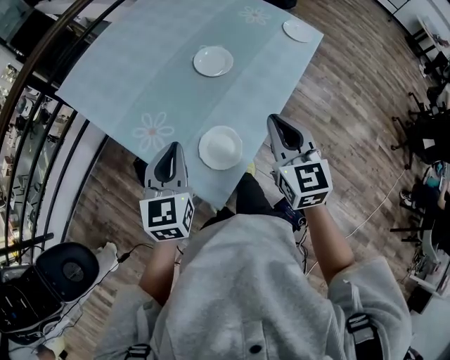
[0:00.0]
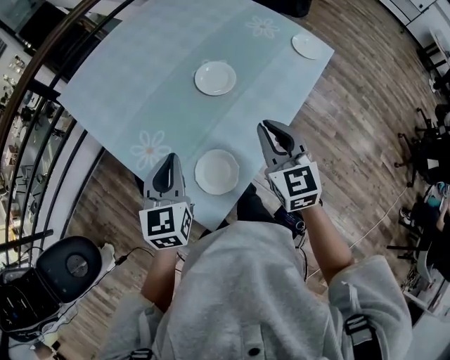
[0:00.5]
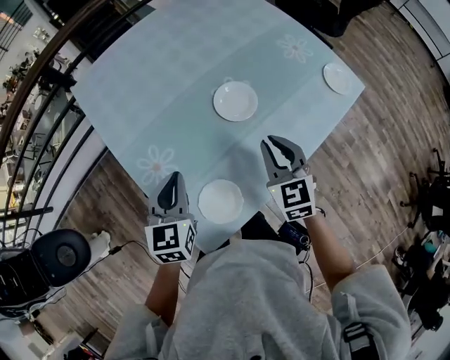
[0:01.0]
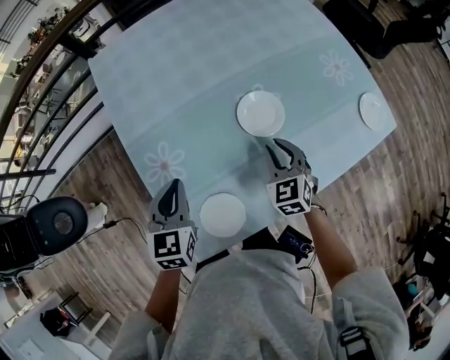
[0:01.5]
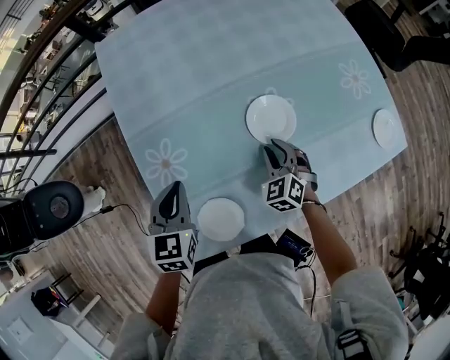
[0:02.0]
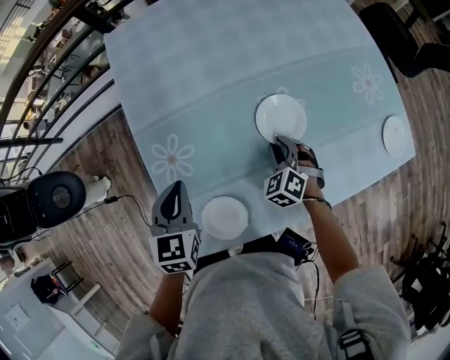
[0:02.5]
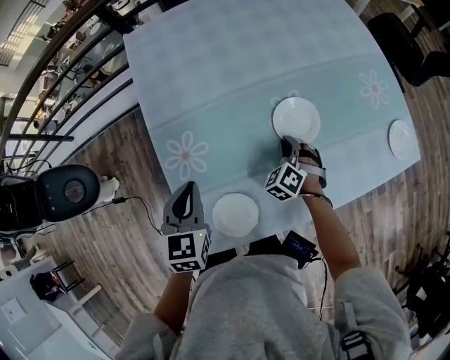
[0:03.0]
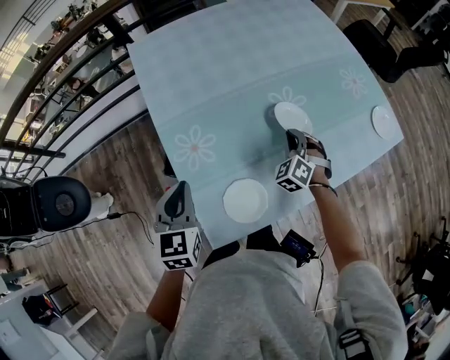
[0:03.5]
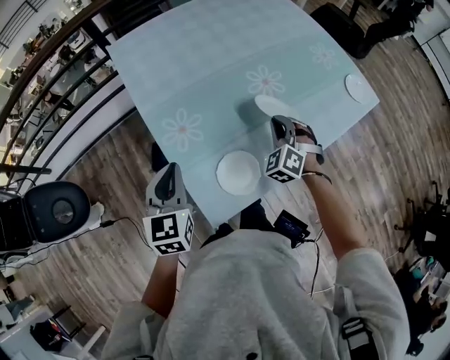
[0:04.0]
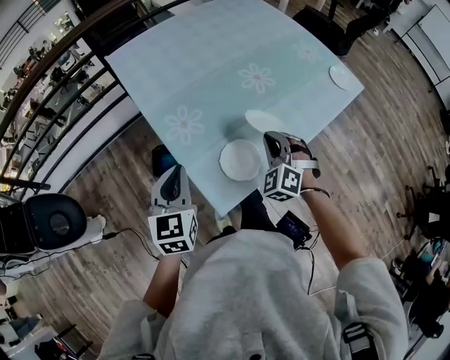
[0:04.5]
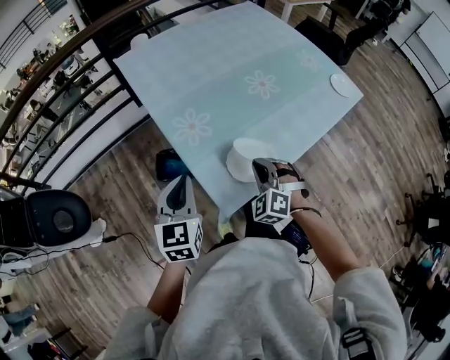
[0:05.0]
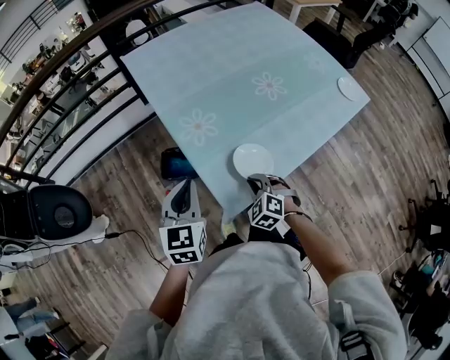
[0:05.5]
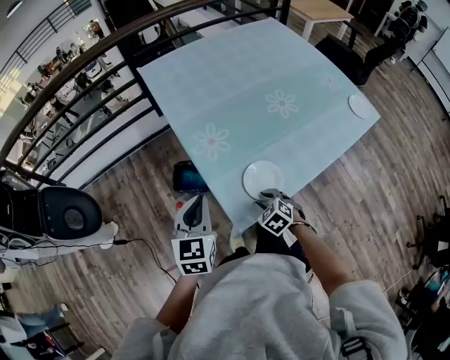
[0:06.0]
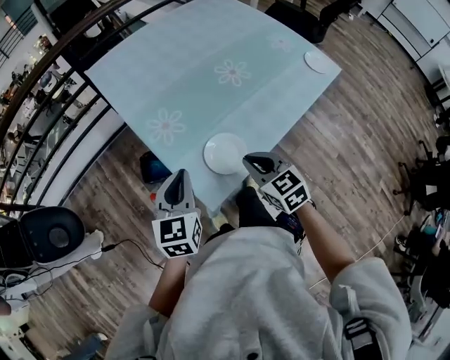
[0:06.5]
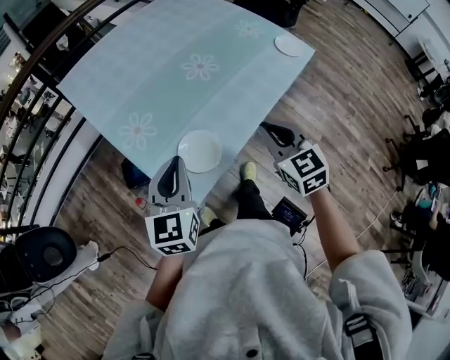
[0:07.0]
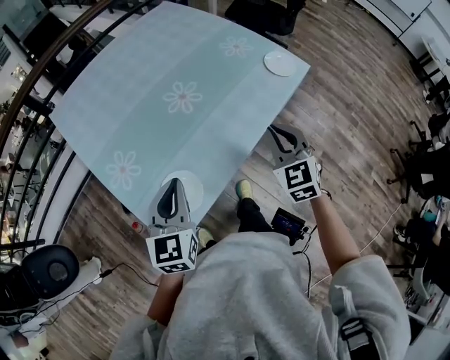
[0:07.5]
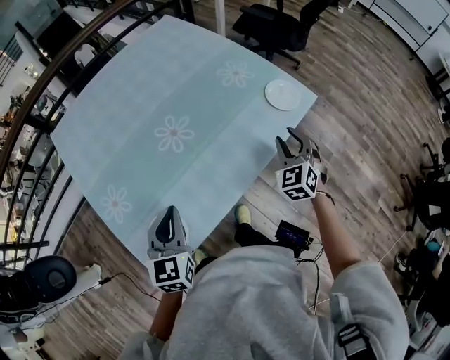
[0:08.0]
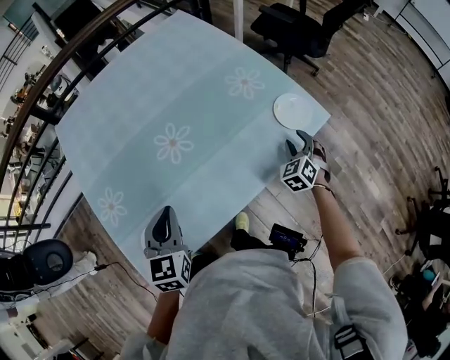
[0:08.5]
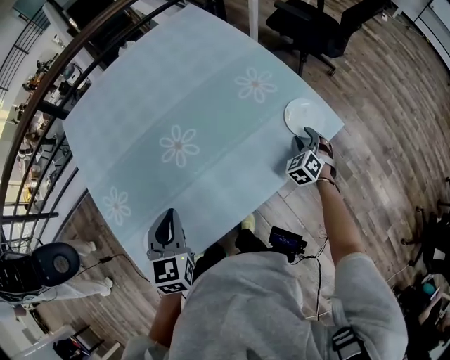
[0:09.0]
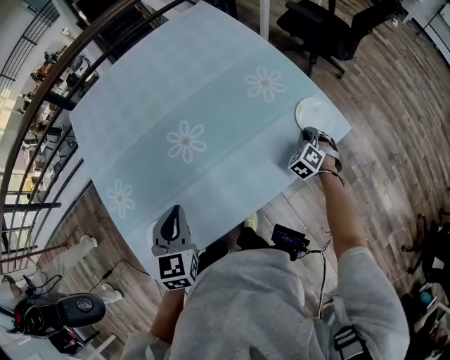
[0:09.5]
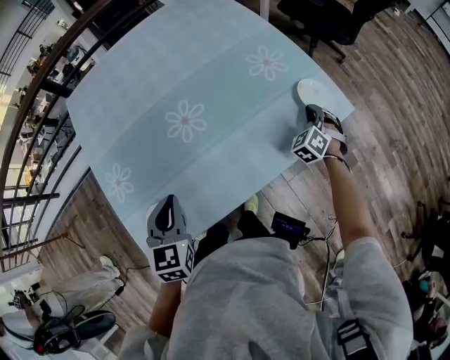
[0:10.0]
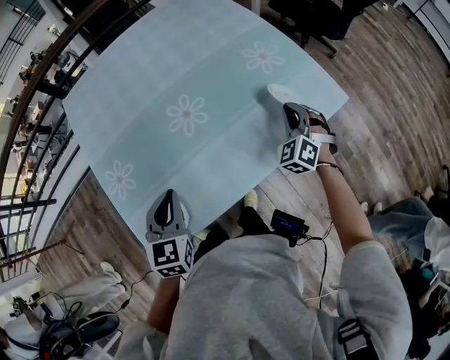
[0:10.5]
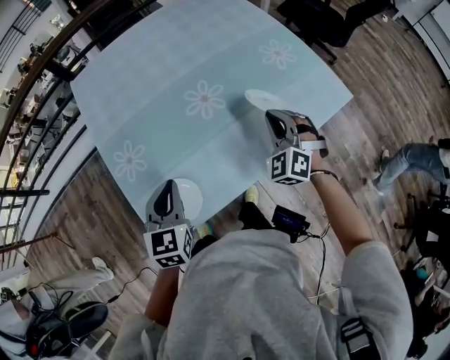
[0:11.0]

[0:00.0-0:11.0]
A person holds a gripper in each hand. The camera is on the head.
0:00.0 to 0:02.0: The right gripper ends up roughly 35 cm from where it was, and swivels some 60 degrees; the left gripper ends up approximately 15 cm from where it was, and swivels some 40 degrees.
0:02.0 to 0:03.5: The left gripper shifts about 10 cm to the left and backward. The right gripper swivels roughly 20 degrees.
0:03.5 to 0:05.5: The right gripper moves backward and to the left, about 30 cm. The left gripper moves backward, about 10 cm.
0:05.5 to 0:07.5: The right gripper changes place by roughly 40 cm, changes its angle by about 40 degrees, and opens and closes again; the left gripper ends up roughly 25 cm from where it was.
0:07.5 to 0:09.0: The left gripper heads forward and to the right, covering about 15 cm, and swivels some 20 degrees, while the right gripper is displaced forward, downward and to the right by roughly 40 cm, turns by roughly 30 degrees, and opens its fingers.
0:09.0 to 0:11.0: The left gripper moves to the left and backward, some 15 cm; the right gripper goes about 30 cm to the left, upward and backward, turns by about 30 degrees, and closes up.

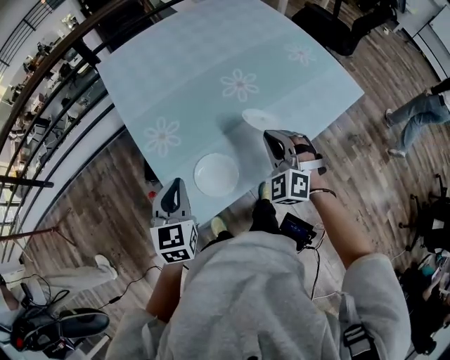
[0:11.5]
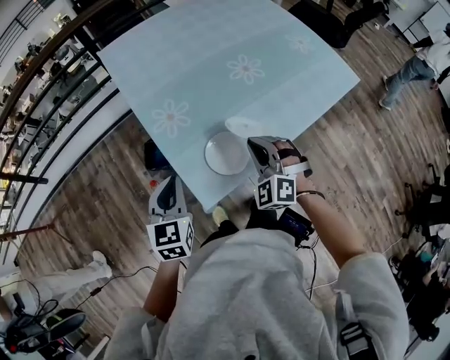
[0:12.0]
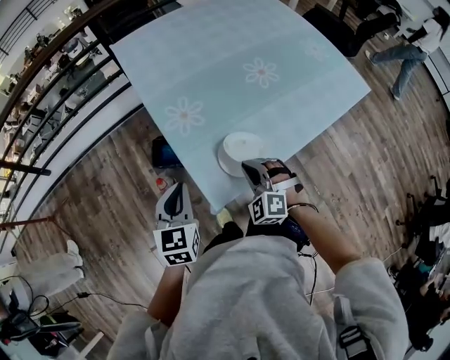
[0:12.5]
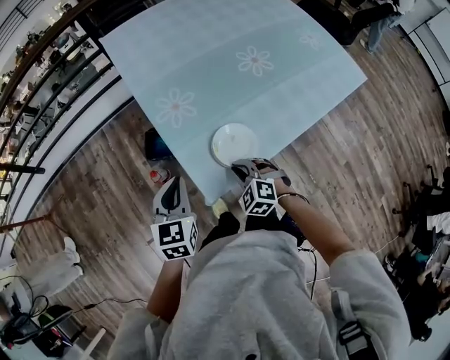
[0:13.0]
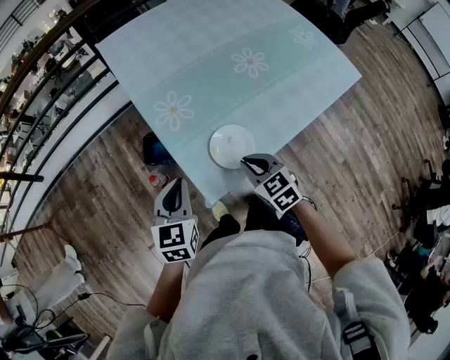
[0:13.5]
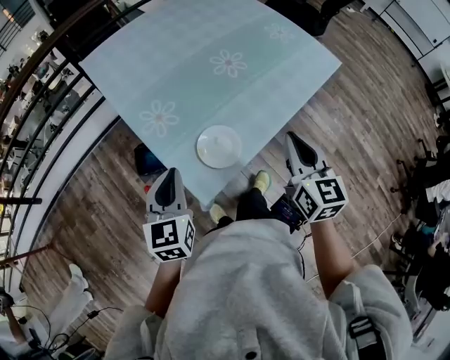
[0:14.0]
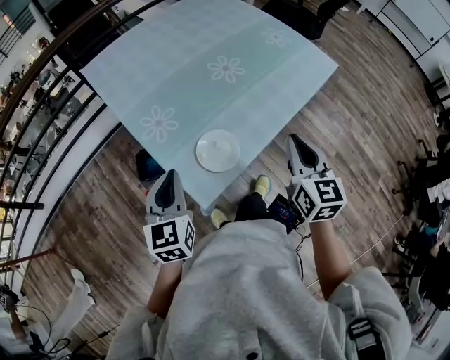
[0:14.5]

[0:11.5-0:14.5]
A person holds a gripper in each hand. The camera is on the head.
0:11.5 to 0:13.0: The left gripper shifts some 10 cm to the left and backward. The right gripper moves to the left, downward and backward, approximately 25 cm, and rotates roughly 30 degrees.
0:13.0 to 0:14.5: The right gripper heads upward and to the right, covering approximately 30 cm, and angles its fingers upward, by some 40 degrees. Meanwhile the left gripper goes roughly 5 cm upward.

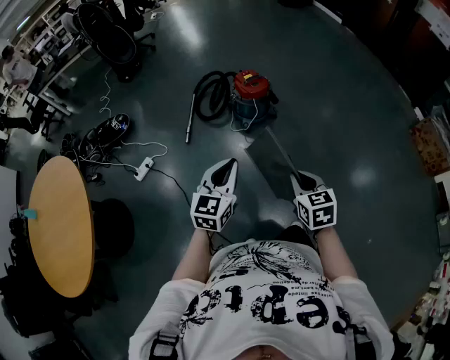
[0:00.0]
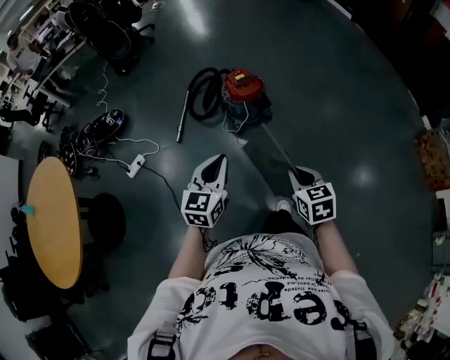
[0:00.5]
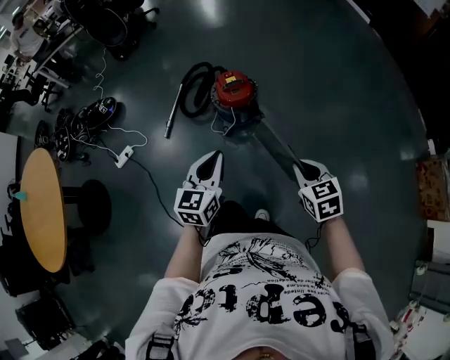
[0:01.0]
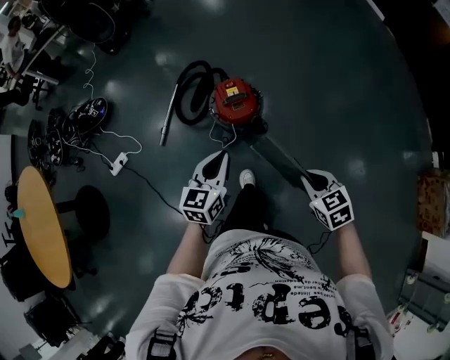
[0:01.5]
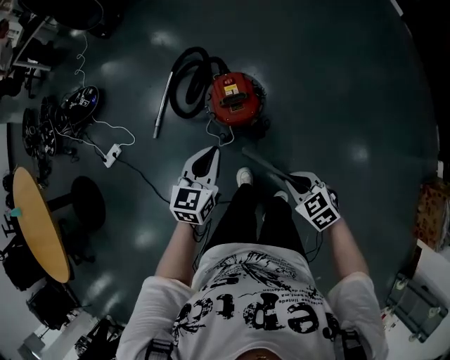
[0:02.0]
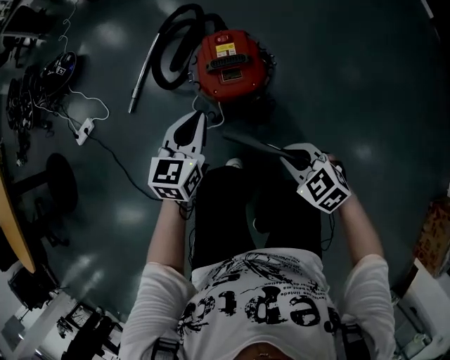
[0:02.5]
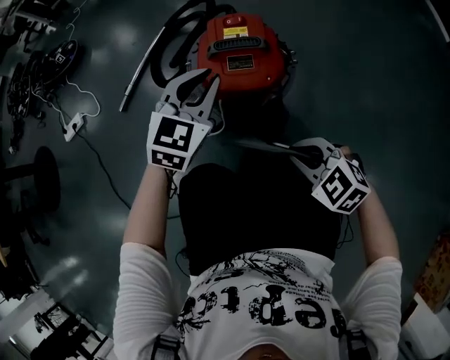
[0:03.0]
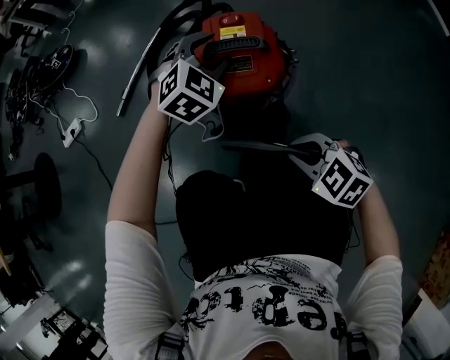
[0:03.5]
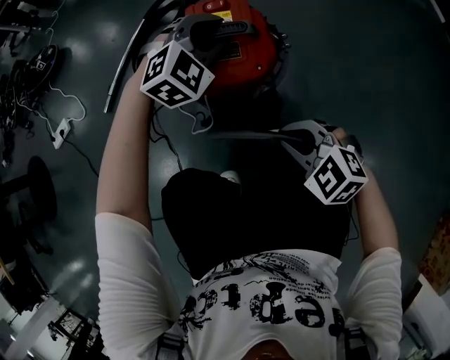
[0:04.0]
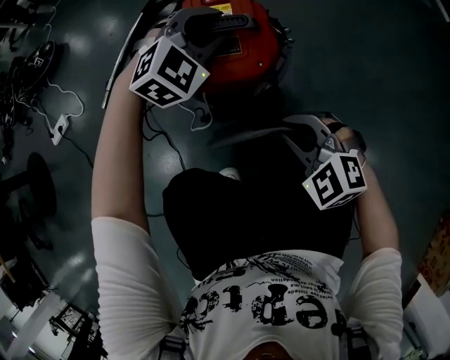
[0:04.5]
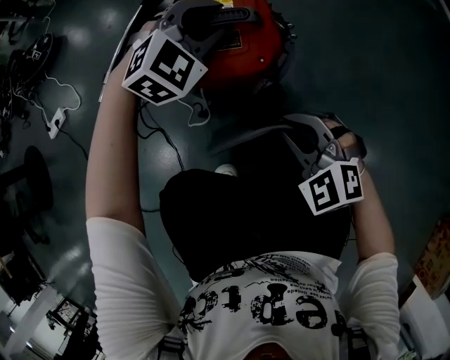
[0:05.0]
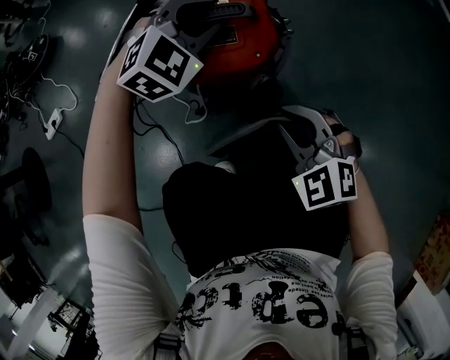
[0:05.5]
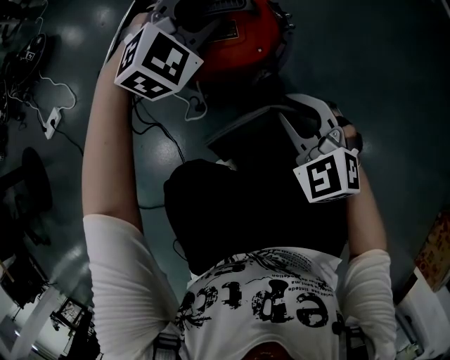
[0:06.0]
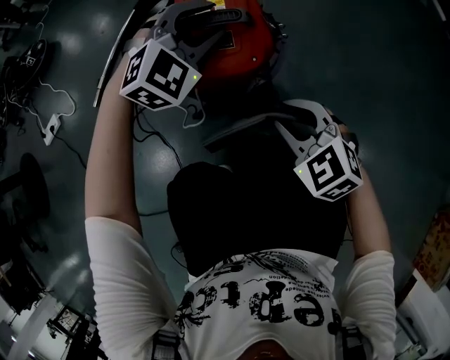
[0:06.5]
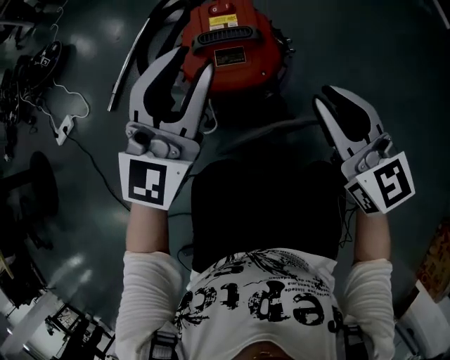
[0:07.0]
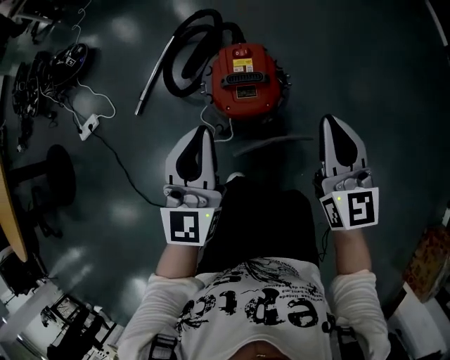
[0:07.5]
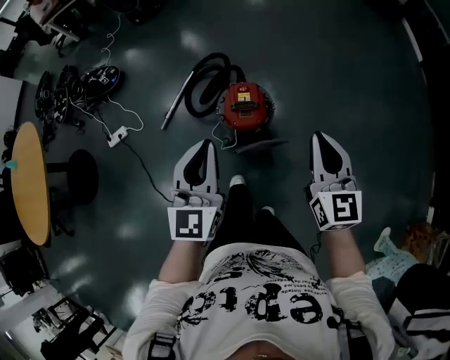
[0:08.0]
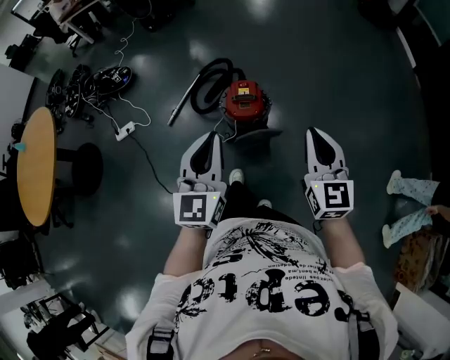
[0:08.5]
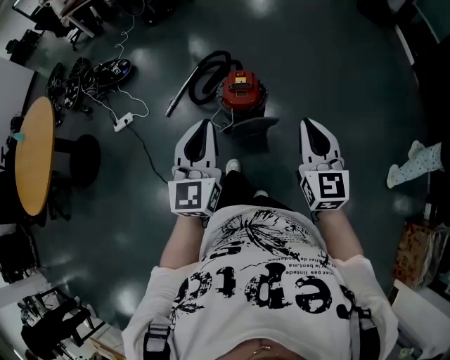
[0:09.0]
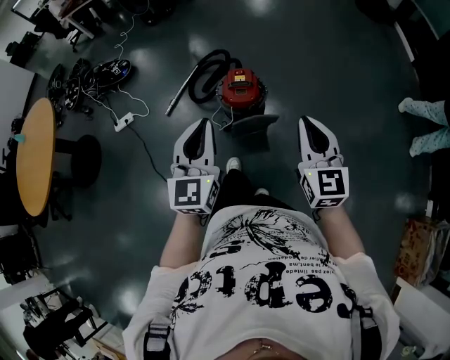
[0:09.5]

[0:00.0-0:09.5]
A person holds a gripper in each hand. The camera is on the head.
0:00.0 to 0:02.0: The two grippers travel together, some 60 cm. The right gripper swivels some 50 degrees. Meanwhile the left gripper rotates approximately 20 degrees.
0:02.0 to 0:04.0: The left gripper travels downward and forward by some 40 cm, rotates around the line of its fingers by roughly 60 degrees, clockwise from behind, and opens, while the right gripper shifts some 35 cm downward, and swivels roughly 40 degrees.
0:04.0 to 0:05.5: The grippers move only a little.
0:05.5 to 0:07.5: The right gripper shifts about 30 cm upward, and angles its fingers upward, by approximately 30 degrees; the left gripper travels upward and backward by roughly 30 cm, points its fingers some 30 degrees further upward, and closes.
0:07.5 to 0:09.5: The two grippers go roughly 40 cm upward and backward.

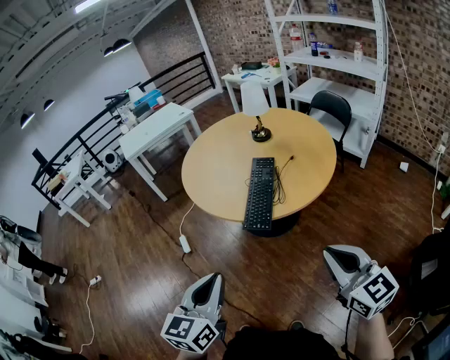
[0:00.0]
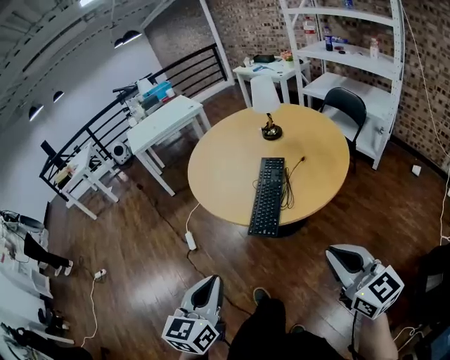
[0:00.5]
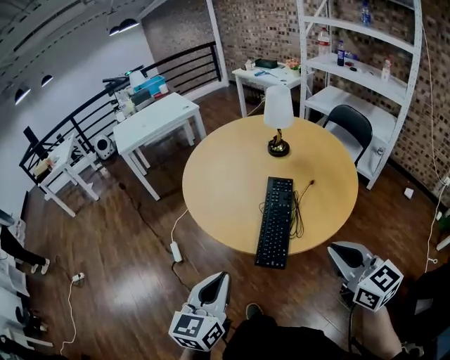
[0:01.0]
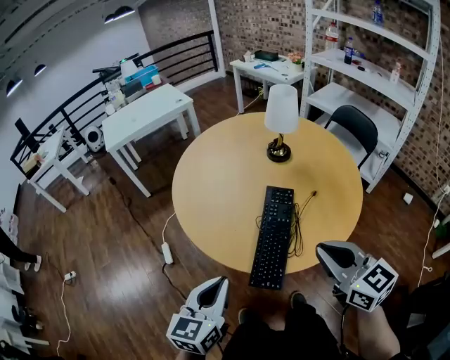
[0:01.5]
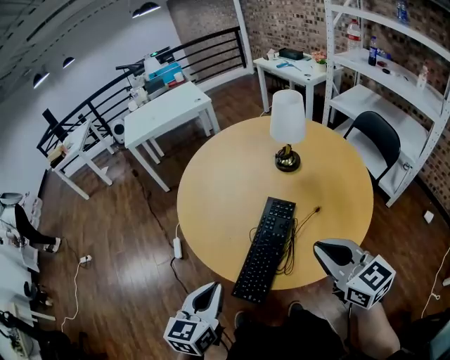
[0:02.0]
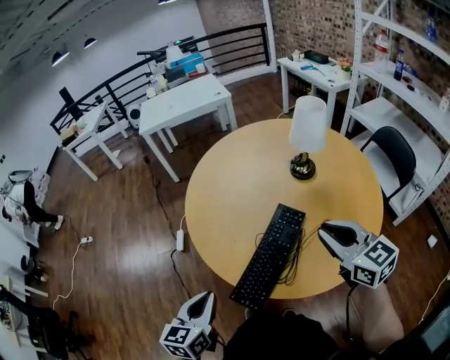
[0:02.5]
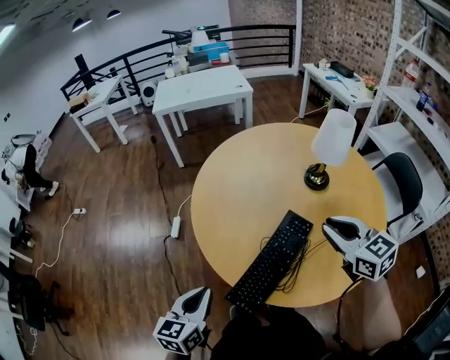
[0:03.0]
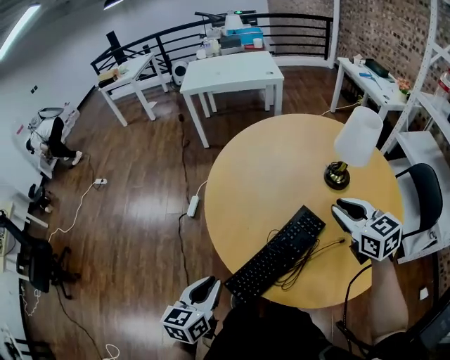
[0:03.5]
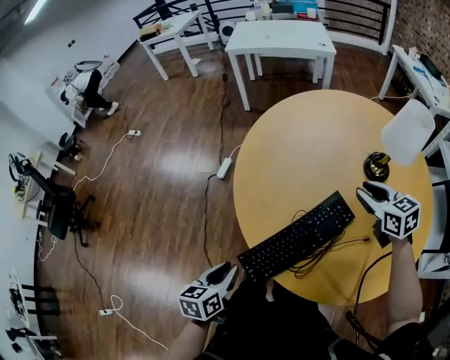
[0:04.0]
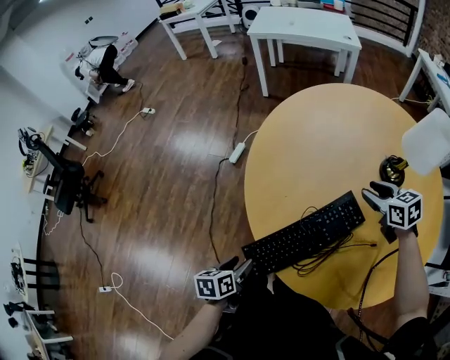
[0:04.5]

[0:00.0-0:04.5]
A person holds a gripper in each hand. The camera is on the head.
0:00.0 to 0:02.0: The grippers both shift forward by roughly 35 cm.
0:02.0 to 0:04.5: The right gripper shifts by roughly 40 cm, swivels roughly 40 degrees, and opens up. The left gripper is displaced downward by approximately 25 cm, changes its angle by about 60 degrees, and opens up.
